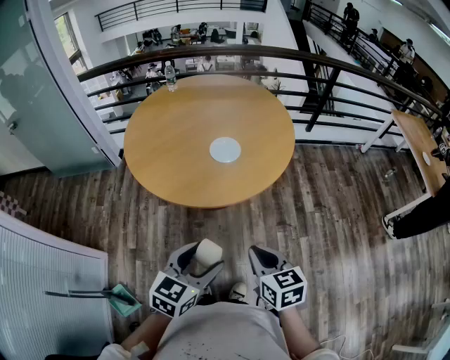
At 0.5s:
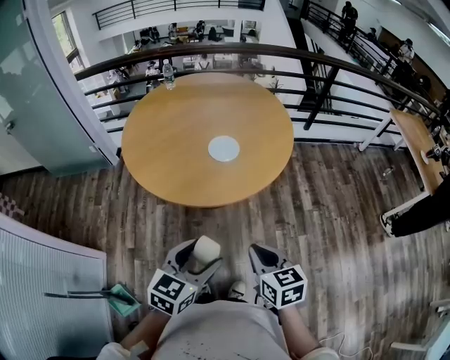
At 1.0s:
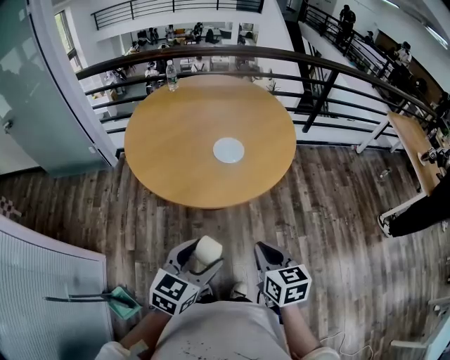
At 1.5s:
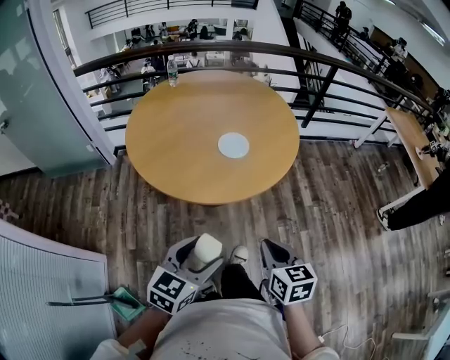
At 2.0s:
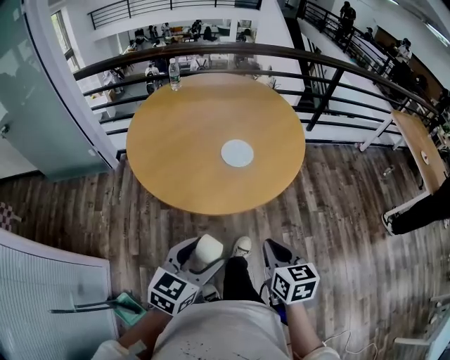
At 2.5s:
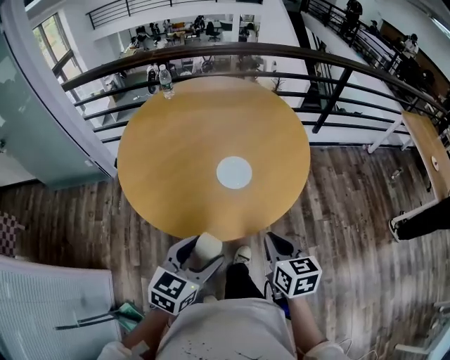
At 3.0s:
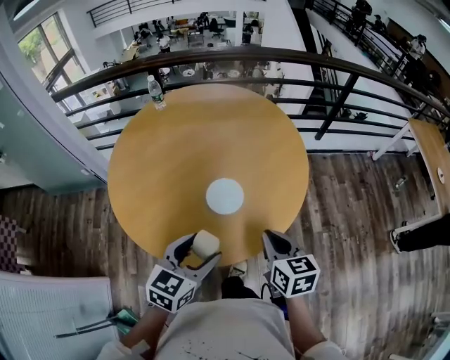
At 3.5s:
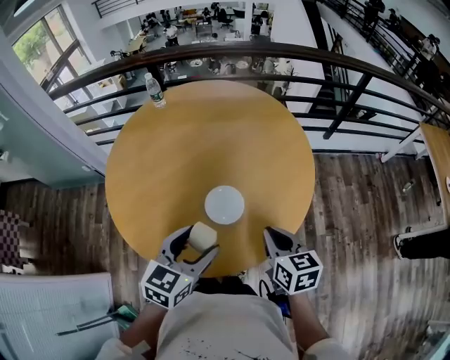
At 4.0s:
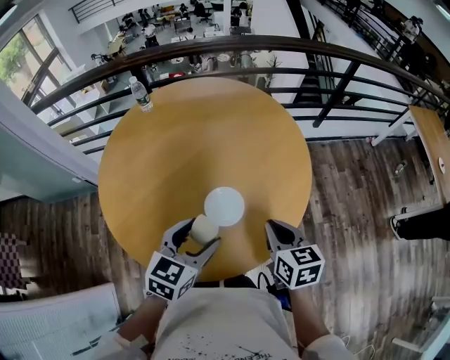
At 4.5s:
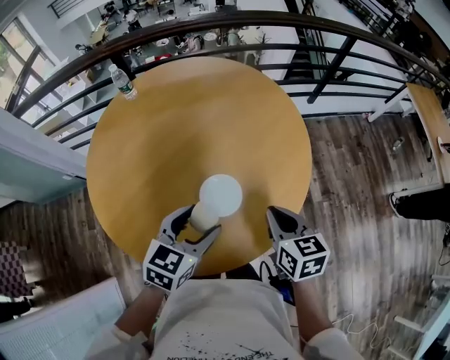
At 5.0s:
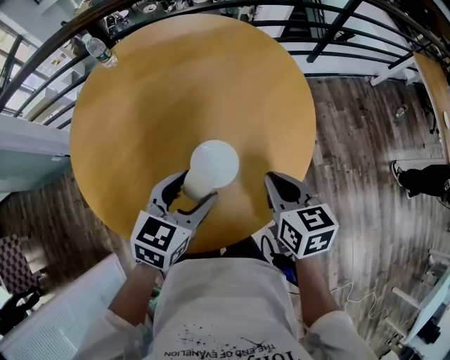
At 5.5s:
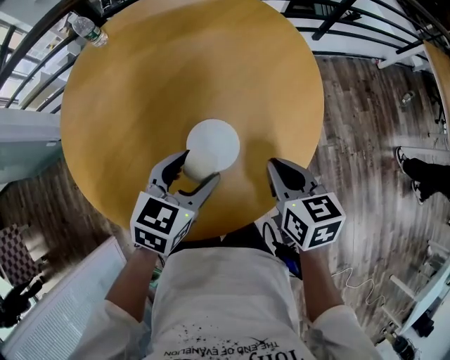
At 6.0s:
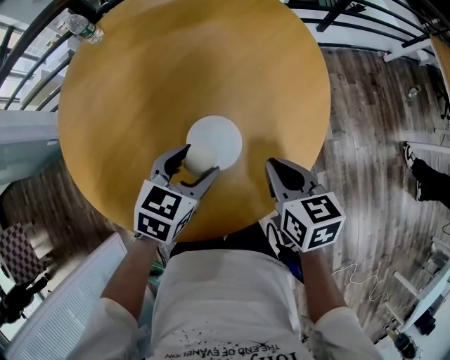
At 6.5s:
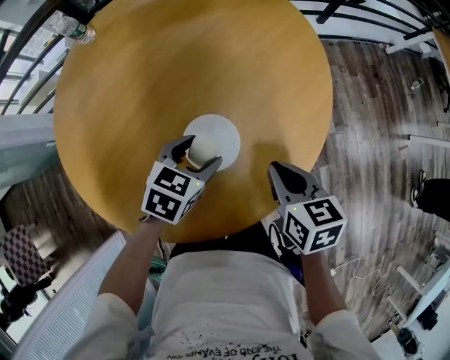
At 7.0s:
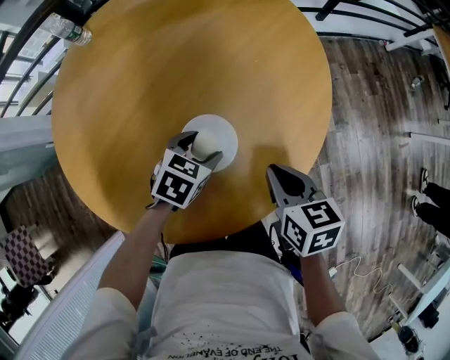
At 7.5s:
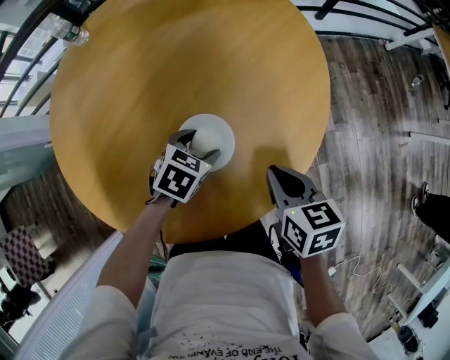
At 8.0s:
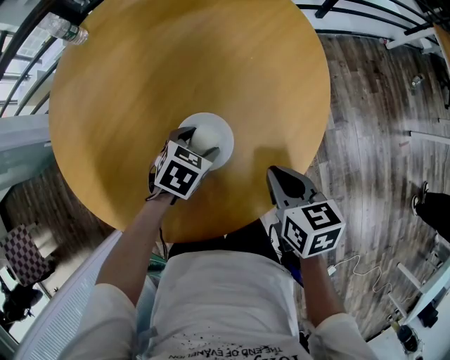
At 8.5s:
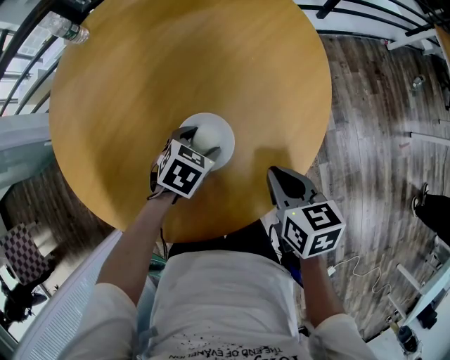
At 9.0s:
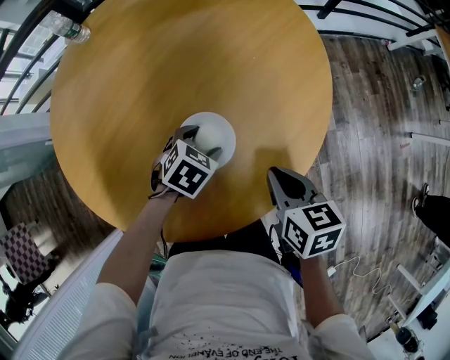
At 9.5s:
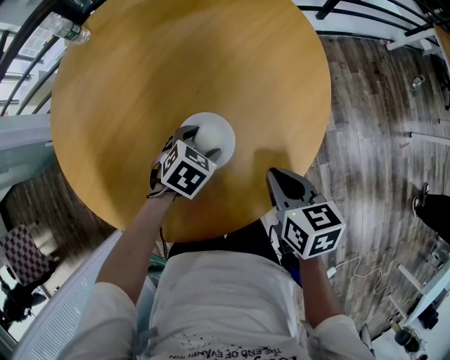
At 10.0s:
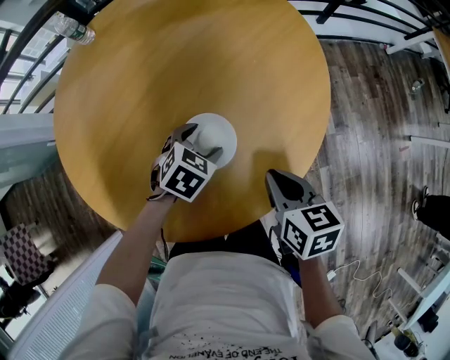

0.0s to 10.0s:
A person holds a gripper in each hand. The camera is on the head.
0.0s to 2.0s: The left gripper moves to the left, roughly 10 cm. Meanwhile the right gripper shifts by approximately 5 cm.
2.0s to 4.0s: The two grippers go some 35 cm forward.
4.0s to 6.0s: The right gripper moves downward and forward, about 10 cm. Meanwhile the left gripper goes about 15 cm downward and forward.
6.0s to 8.0s: The right gripper shifts by some 5 cm, while the left gripper moves downward, some 10 cm, and turns by about 20 degrees.
8.0s to 10.0s: The grippers stay close to where they were, moving slightly.

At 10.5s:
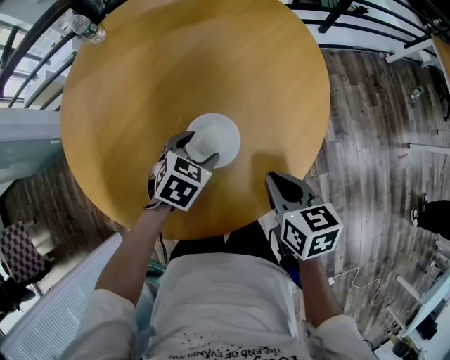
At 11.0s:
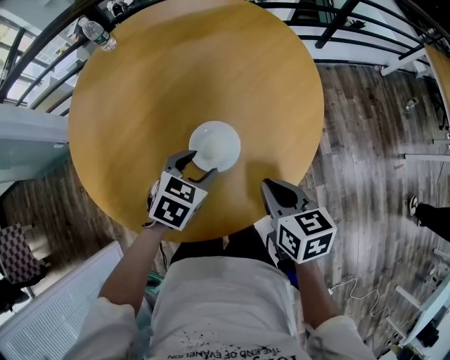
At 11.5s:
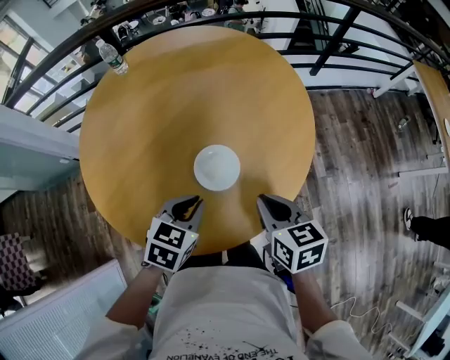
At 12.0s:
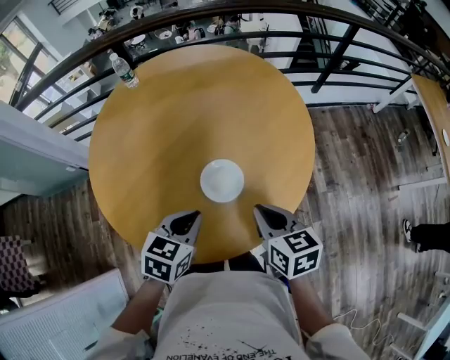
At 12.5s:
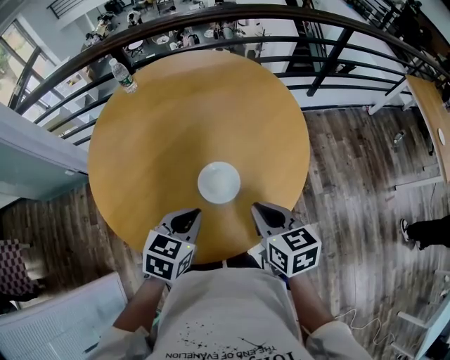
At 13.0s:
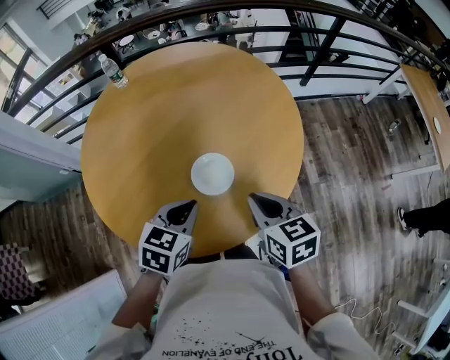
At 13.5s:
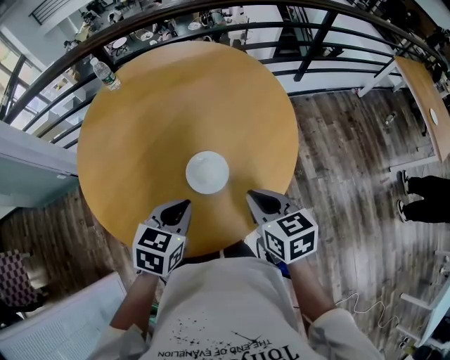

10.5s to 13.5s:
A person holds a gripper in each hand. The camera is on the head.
10.5s to 12.0s: The right gripper is displaced upward by roughly 10 cm, while the left gripper heads upward and backward, covering some 20 cm, rotates roughly 20 degrees, and closes up.
12.0s to 13.5s: The grippers stay close to where they were, moving slightly.

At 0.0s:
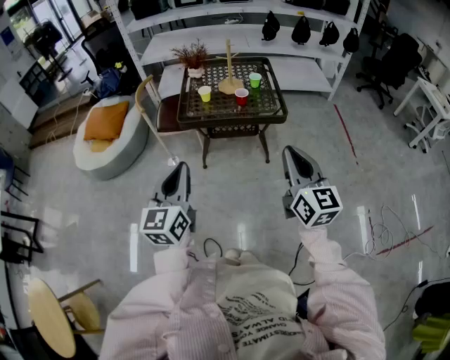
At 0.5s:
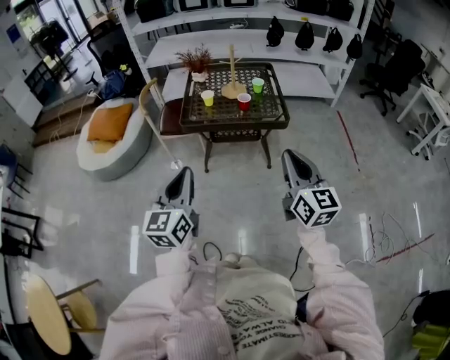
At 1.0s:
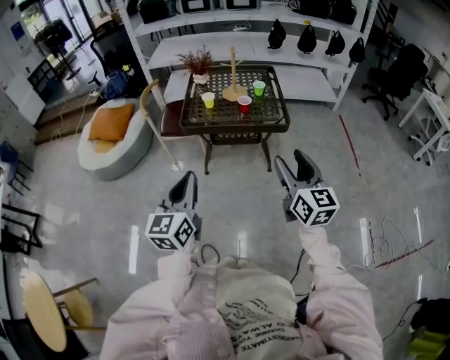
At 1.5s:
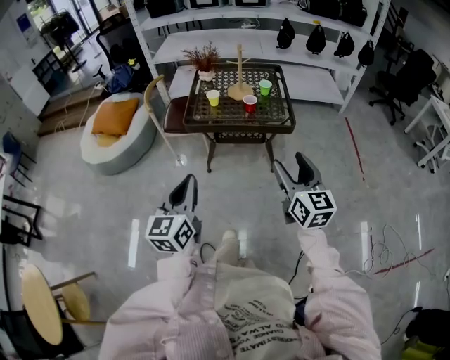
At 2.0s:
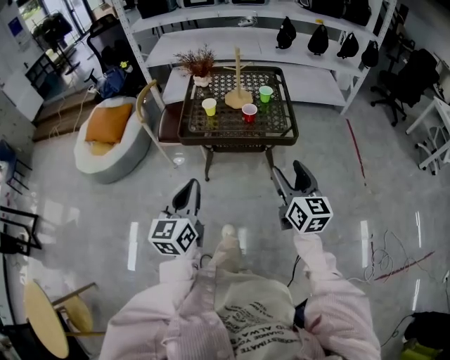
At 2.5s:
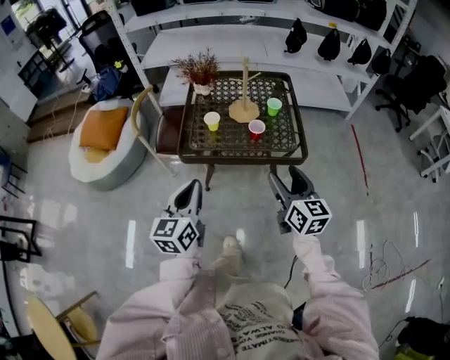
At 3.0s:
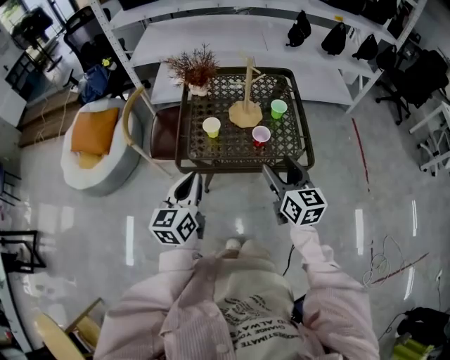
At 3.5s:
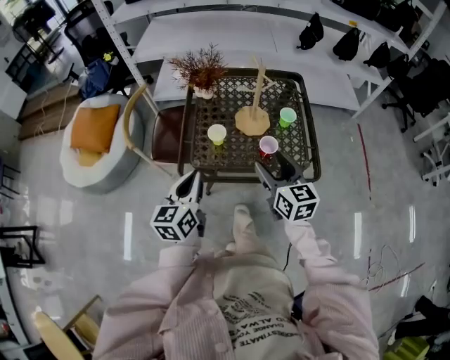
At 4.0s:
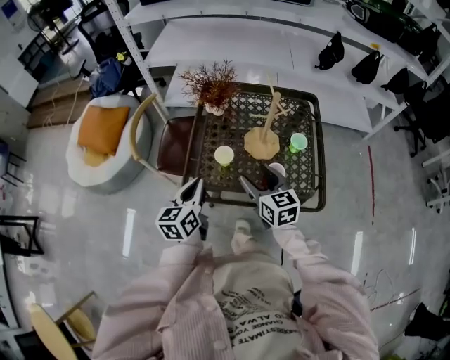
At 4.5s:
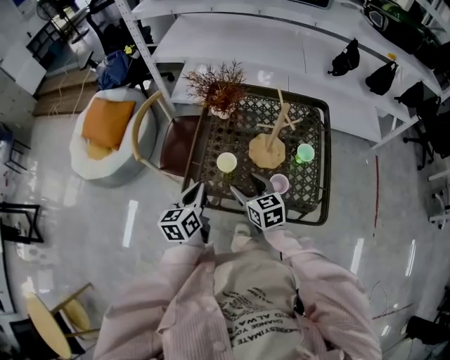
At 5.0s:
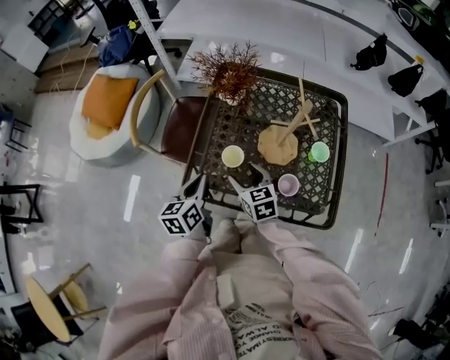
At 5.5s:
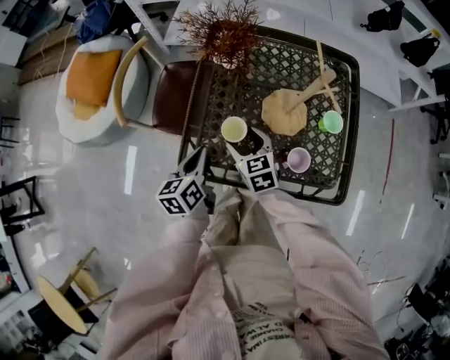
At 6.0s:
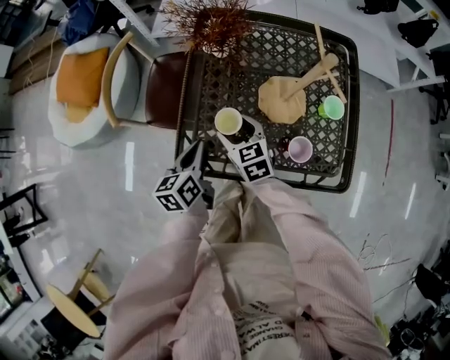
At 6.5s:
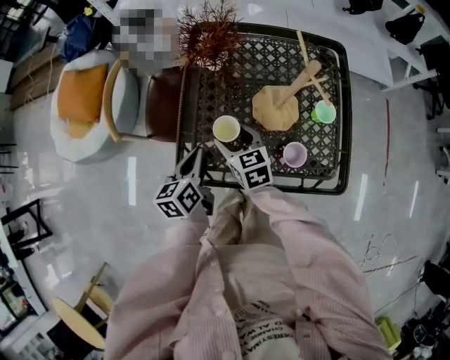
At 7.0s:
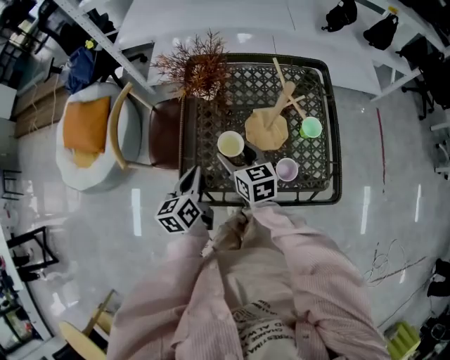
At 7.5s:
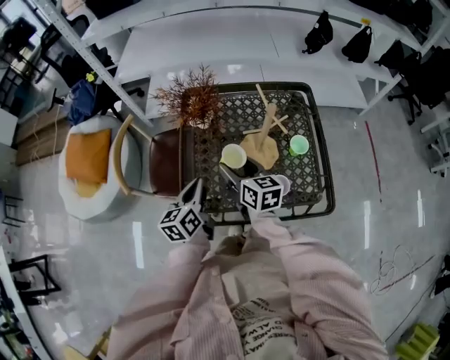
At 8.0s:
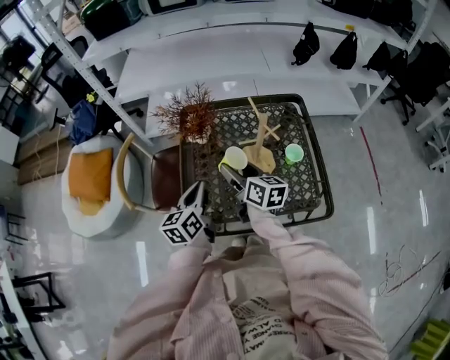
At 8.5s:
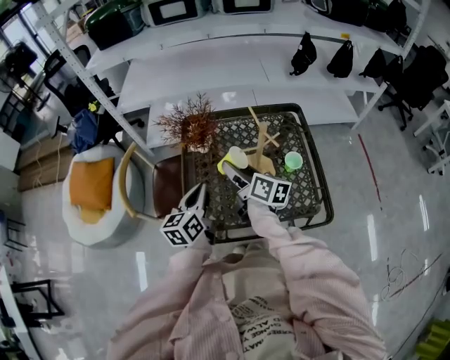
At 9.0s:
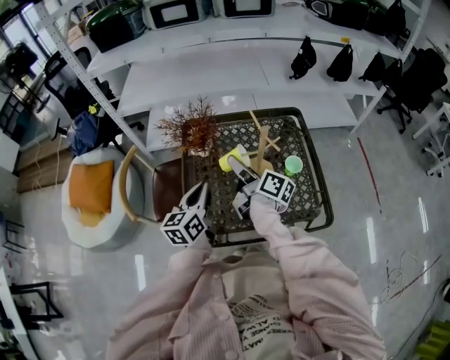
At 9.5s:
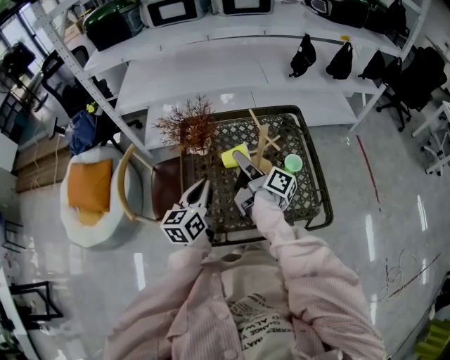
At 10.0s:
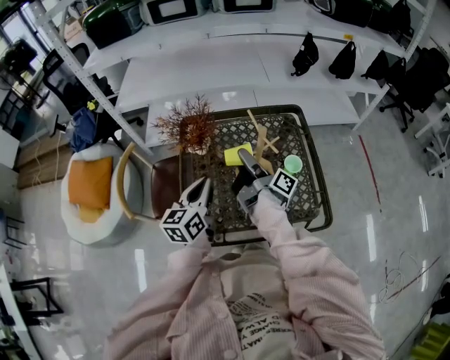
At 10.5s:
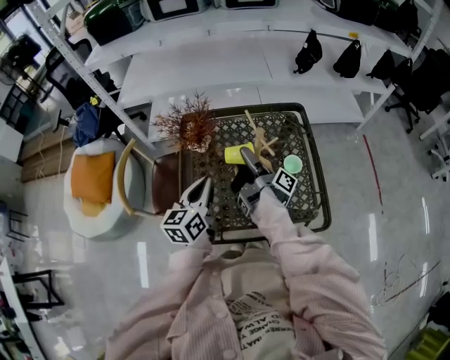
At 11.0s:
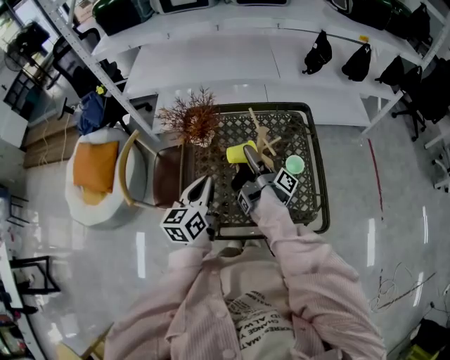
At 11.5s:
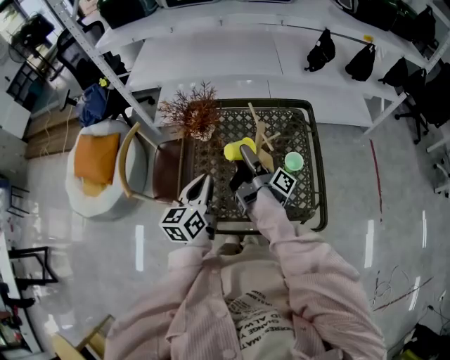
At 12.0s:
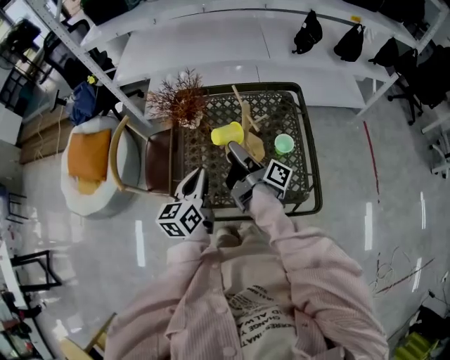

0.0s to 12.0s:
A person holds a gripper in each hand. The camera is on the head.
0.0s to 2.0s: Both grippers move forward and downward, roughly 15 cm. The right gripper opens up.
2.0s to 4.0s: The two grippers go some 40 cm forward. The right gripper changes its angle by about 20 degrees.
4.0s to 6.0s: The right gripper is displaced downward, forward and to the left by roughly 20 cm, while the left gripper is displaced downward and forward by roughly 15 cm.
6.0s to 8.0s: The left gripper travels upward and forward by about 15 cm. Meanwhile the right gripper is displaced upward and to the right by about 15 cm, and swivels approximately 40 degrees.
8.0s to 10.0s: The left gripper shifts by about 5 cm. The right gripper ends up some 5 cm from where it was, and twists about 60 degrees clockwise, seen from behind.
10.0s to 12.0s: The left gripper moves roughly 5 cm.

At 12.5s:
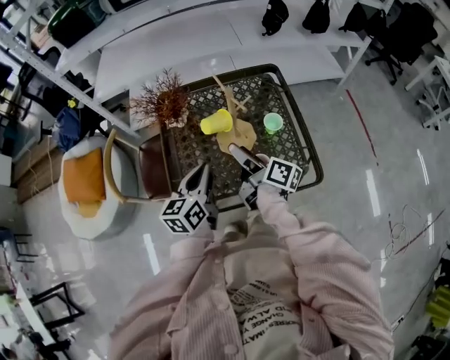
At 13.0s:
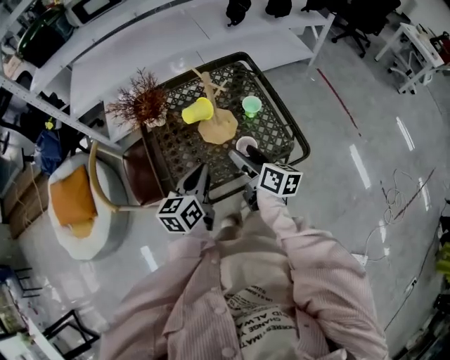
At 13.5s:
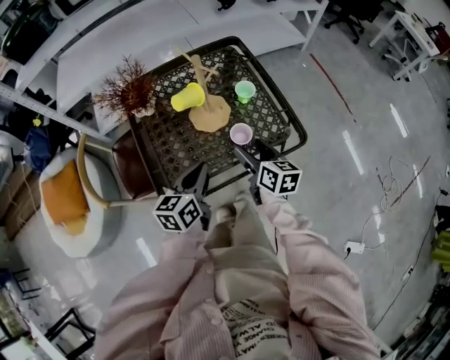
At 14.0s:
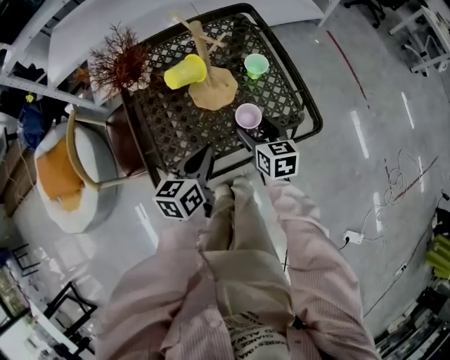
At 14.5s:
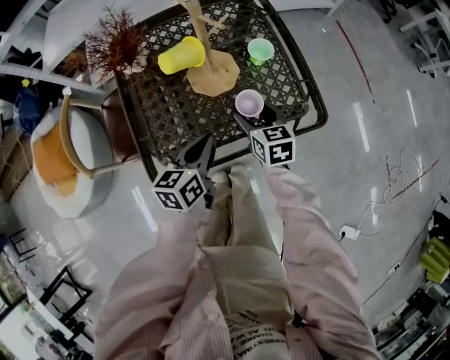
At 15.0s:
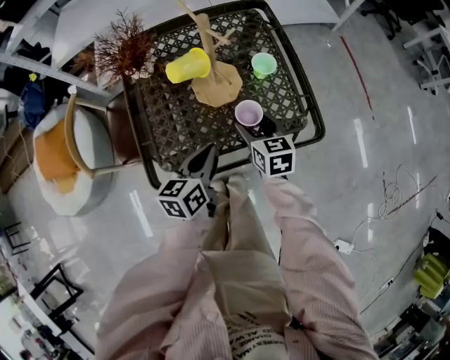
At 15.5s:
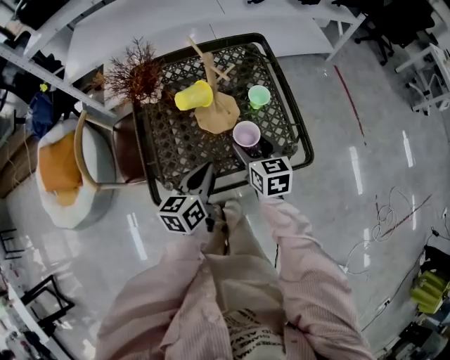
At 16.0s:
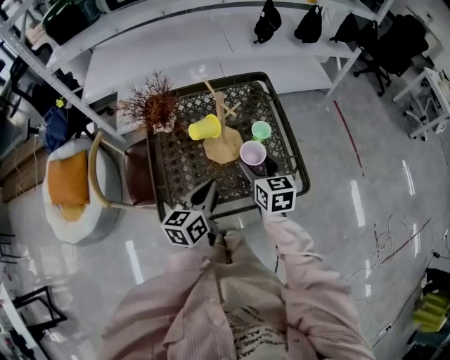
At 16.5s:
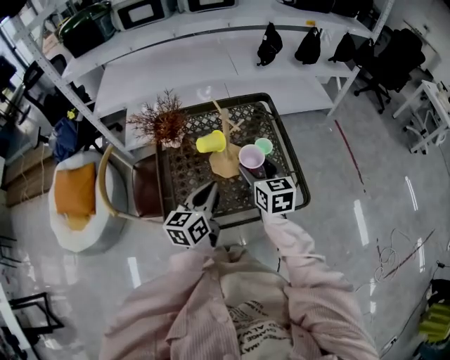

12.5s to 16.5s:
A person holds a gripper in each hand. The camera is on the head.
12.5s to 14.5s: The grippers both shift downward and to the right by approximately 15 cm. The right gripper rolls counterclockwise, seen from behind, by about 50 degrees.
14.5s to 16.5s: The grippers both shift upward by roughly 15 cm.
